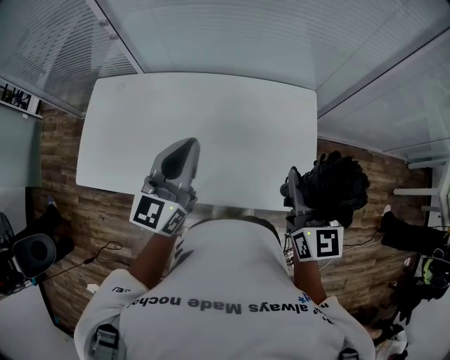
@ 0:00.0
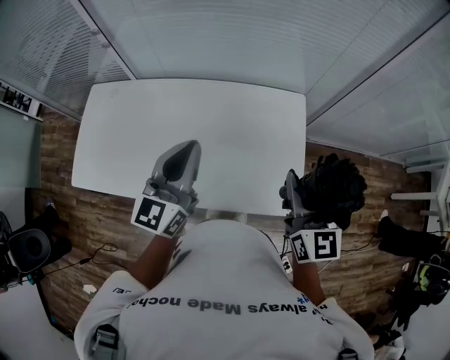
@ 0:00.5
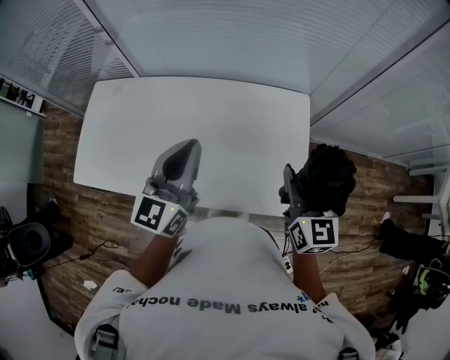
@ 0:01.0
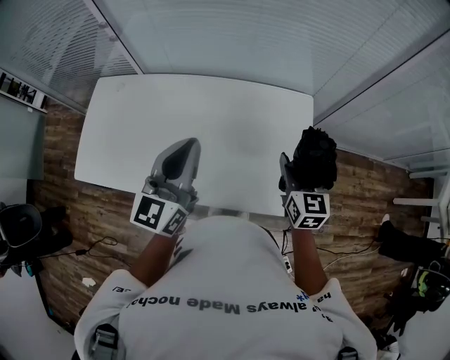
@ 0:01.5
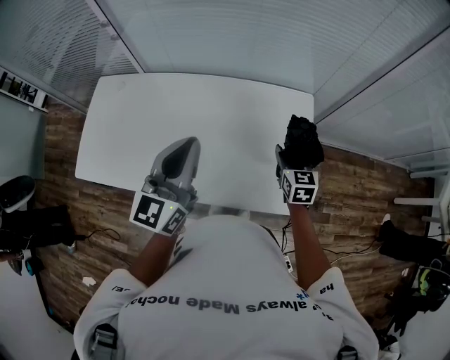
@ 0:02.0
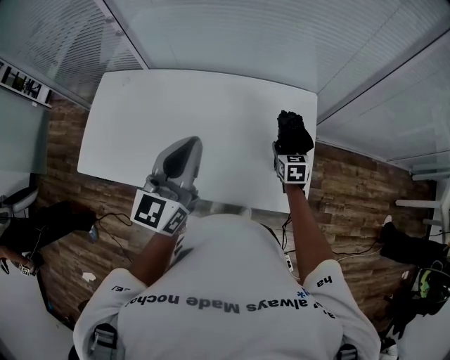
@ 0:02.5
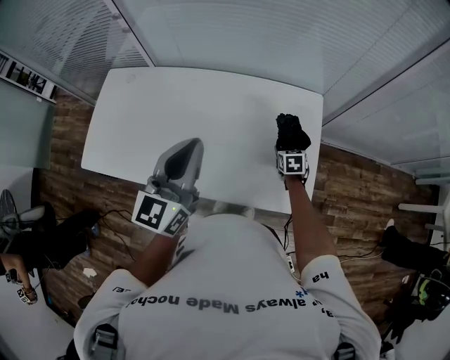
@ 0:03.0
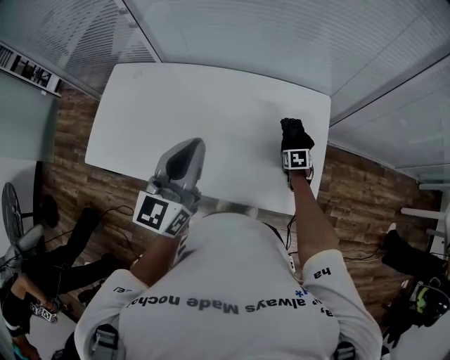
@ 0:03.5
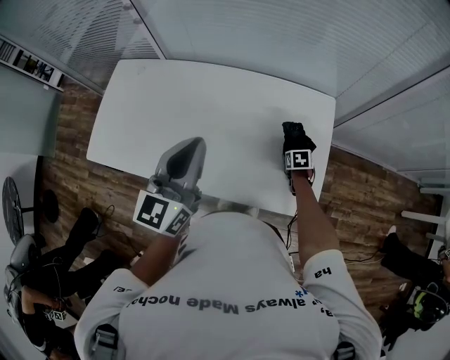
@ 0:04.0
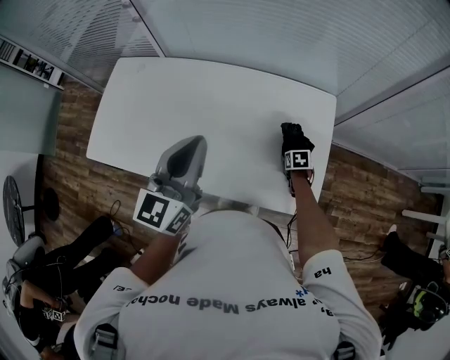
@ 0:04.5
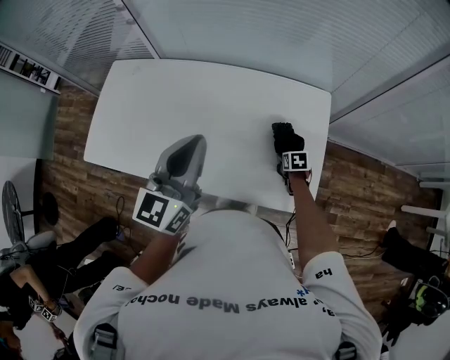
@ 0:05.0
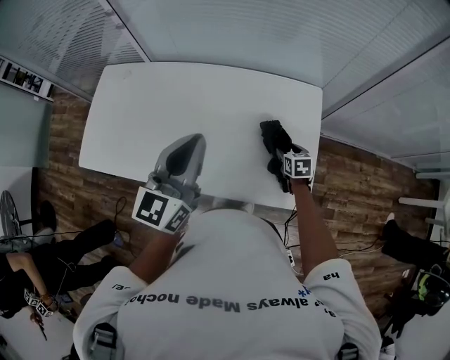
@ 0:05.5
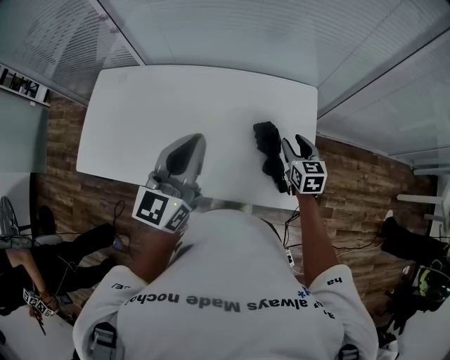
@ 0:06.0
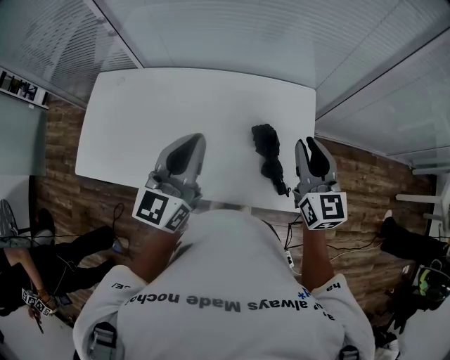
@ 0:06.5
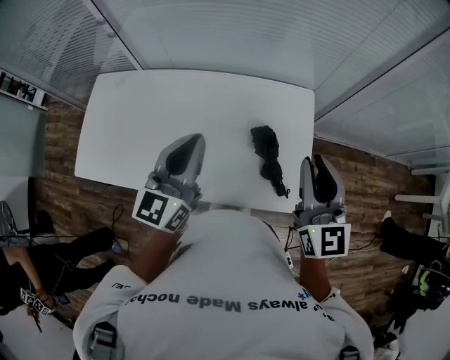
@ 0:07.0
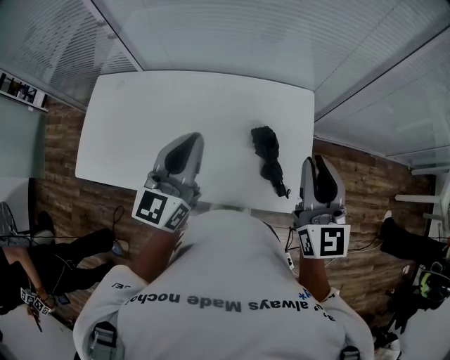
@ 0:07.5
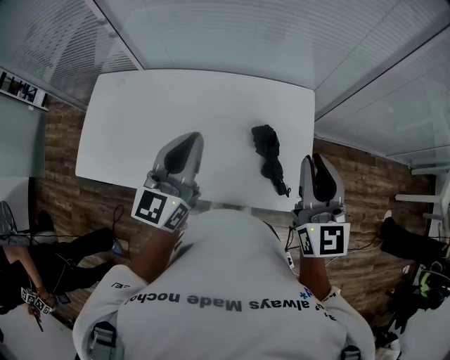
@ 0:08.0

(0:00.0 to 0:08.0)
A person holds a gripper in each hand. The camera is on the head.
0:00.0 - 0:02.0: The right gripper shifts about 20 cm downward and forward, and changes its angle by about 20 degrees, while the left gripper travels to the right by approximately 5 cm.
0:02.0 - 0:04.0: The right gripper is displaced downward by roughly 25 cm, and tilts its fingers about 40 degrees downward.
0:04.0 - 0:06.0: The right gripper travels upward by about 20 cm, and angles its fingers upward, by approximately 40 degrees.
0:06.0 - 0:08.0: The right gripper is displaced upward by roughly 25 cm, rotates approximately 30 degrees, and closes its fingers.

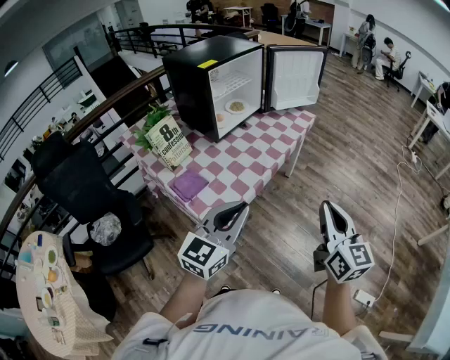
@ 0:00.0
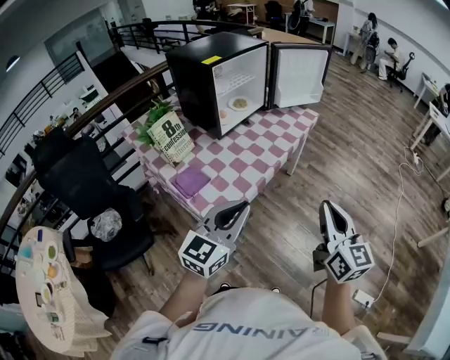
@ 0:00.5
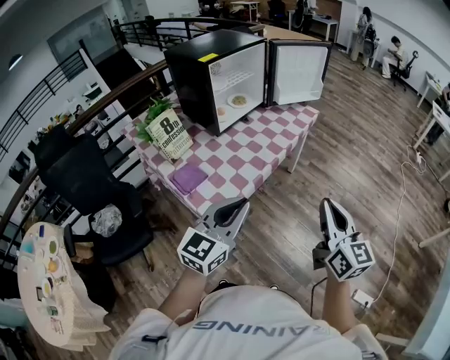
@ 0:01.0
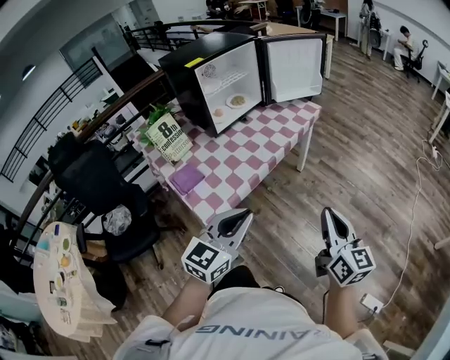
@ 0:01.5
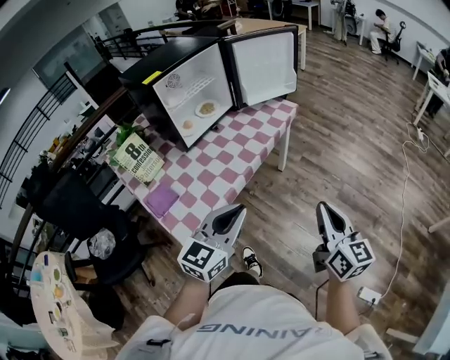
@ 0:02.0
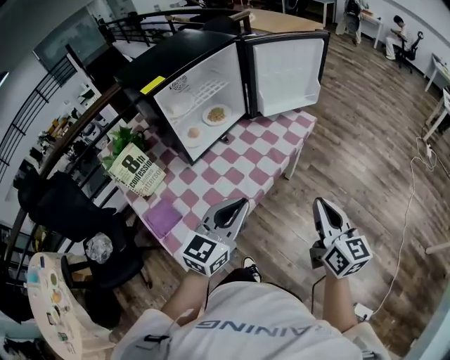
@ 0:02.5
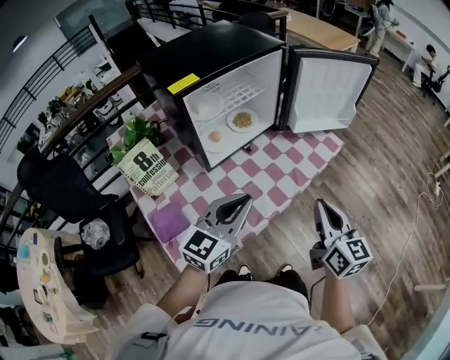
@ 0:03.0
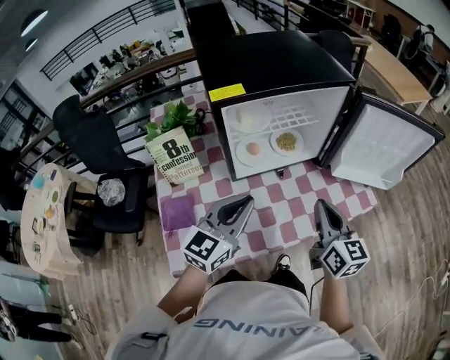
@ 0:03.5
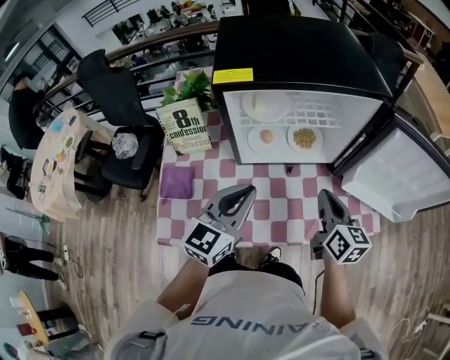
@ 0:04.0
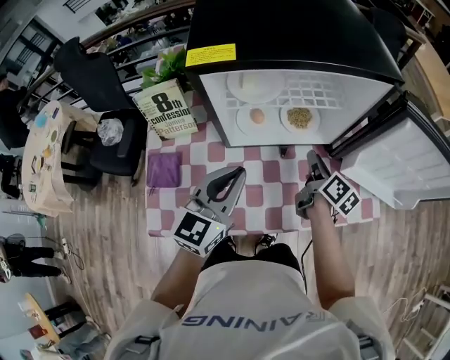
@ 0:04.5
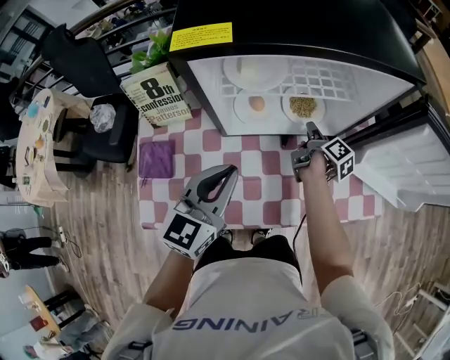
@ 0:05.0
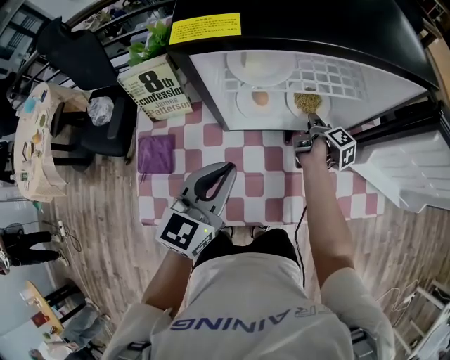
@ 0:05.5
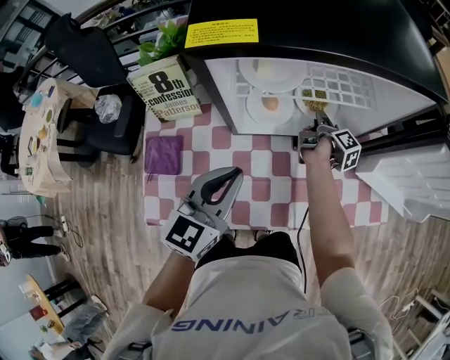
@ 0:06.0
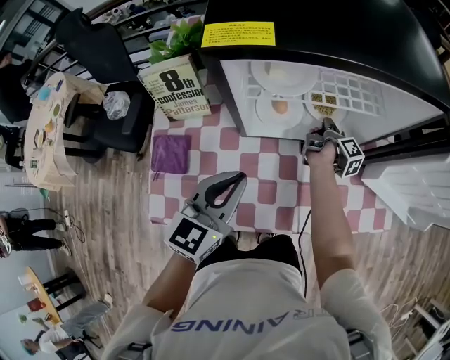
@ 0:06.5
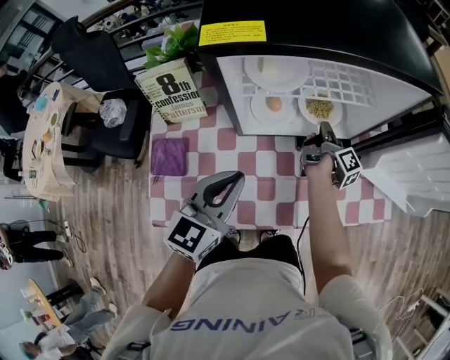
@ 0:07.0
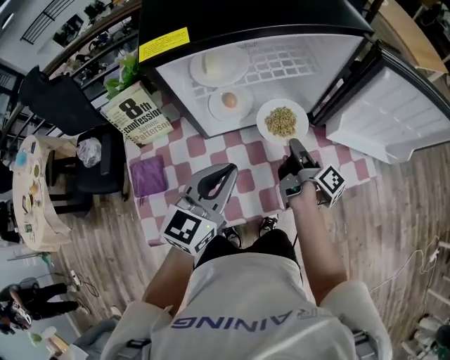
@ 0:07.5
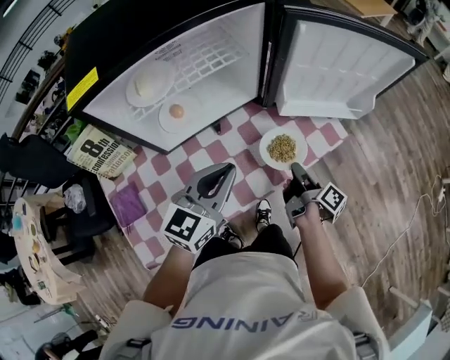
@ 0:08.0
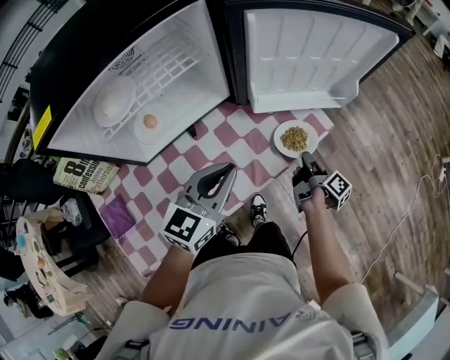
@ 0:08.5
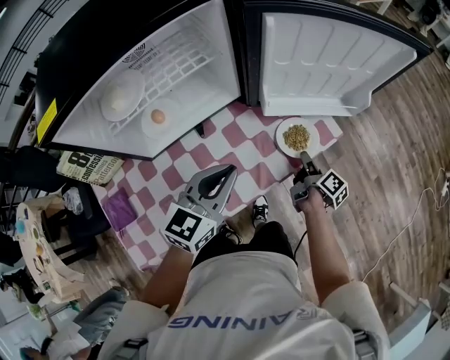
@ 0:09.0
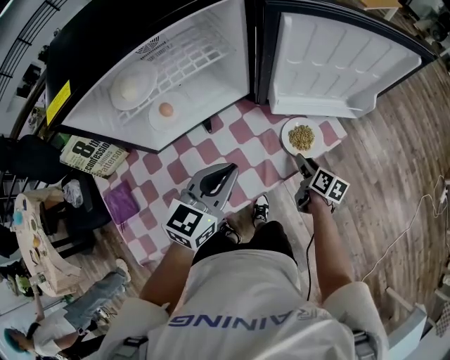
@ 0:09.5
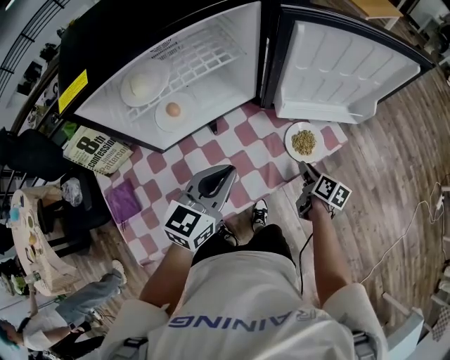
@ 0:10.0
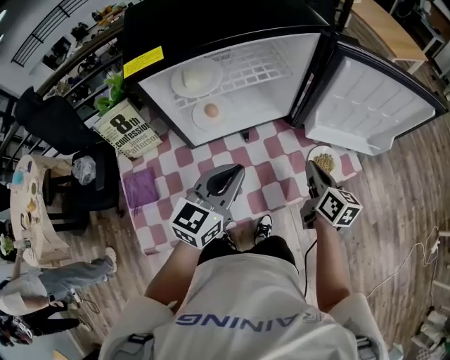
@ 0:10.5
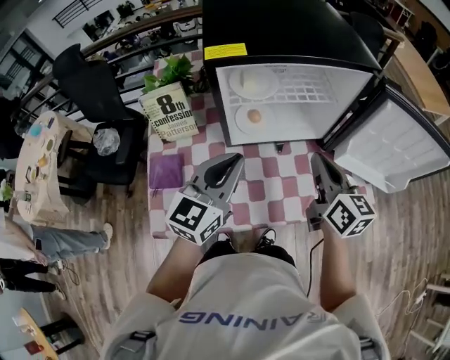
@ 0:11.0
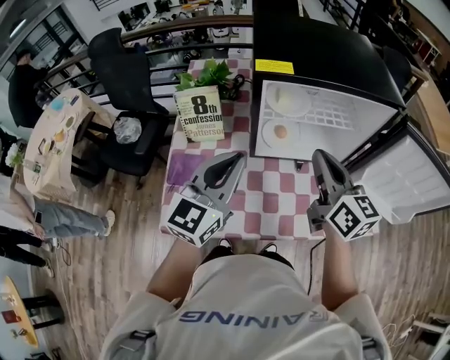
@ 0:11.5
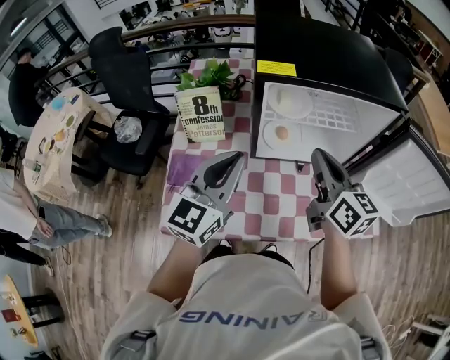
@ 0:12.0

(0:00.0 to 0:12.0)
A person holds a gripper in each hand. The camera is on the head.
0:00.0 - 0:02.0: The left gripper heads to the right and forward, covering about 15 cm. Meanwhile the right gripper goes about 15 cm to the right, forward and downward.
0:02.0 - 0:04.0: The left gripper ends up some 40 cm from where it was, and turns by about 50 degrees, while the right gripper shifts by some 60 cm, and rotates approximately 50 degrees.
0:04.0 - 0:06.0: The left gripper goes about 5 cm downward. Meanwhile the right gripper goes roughly 30 cm forward and downward, twists approximately 70 degrees clockwise, seen from behind, and opens up.
0:06.0 - 0:08.0: The right gripper goes approximately 35 cm backward and to the right, and closes up. Meanwhile the left gripper shifts about 15 cm to the right, and changes its angle by approximately 30 degrees.
0:08.0 - 0:10.0: The right gripper heads downward and to the right, covering roughly 10 cm, changes its angle by approximately 40 degrees, and opens up.
0:10.0 - 0:12.0: The left gripper shifts by about 25 cm, and swivels some 40 degrees, while the right gripper moves upward, about 35 cm, tilts its fingers some 30 degrees upward, and closes its fingers.

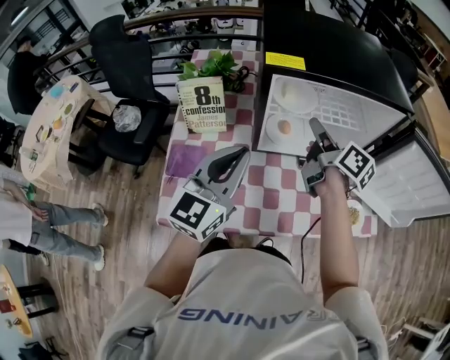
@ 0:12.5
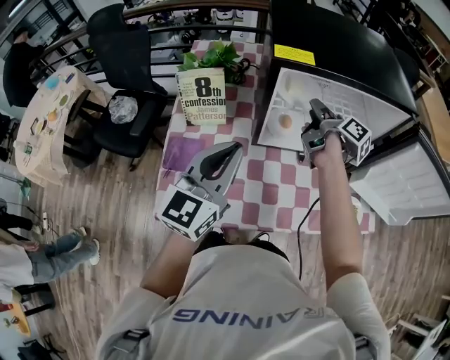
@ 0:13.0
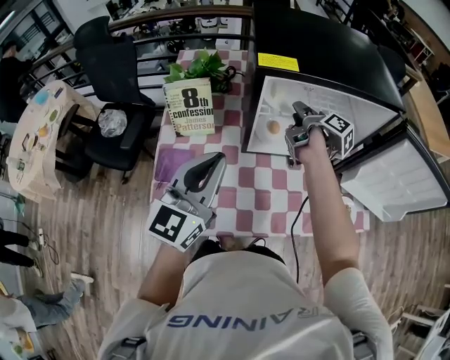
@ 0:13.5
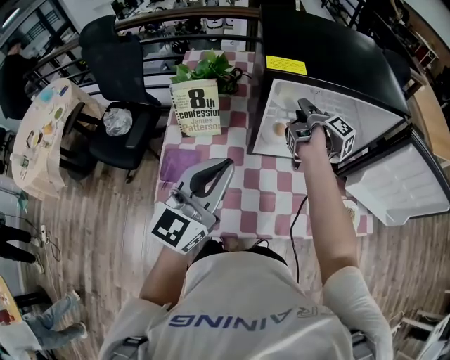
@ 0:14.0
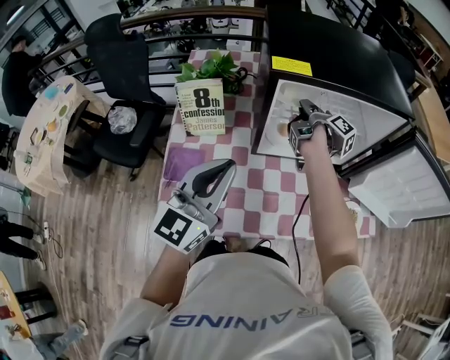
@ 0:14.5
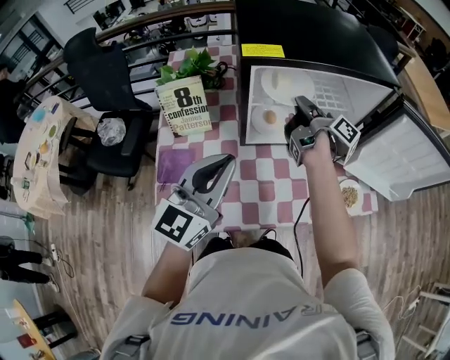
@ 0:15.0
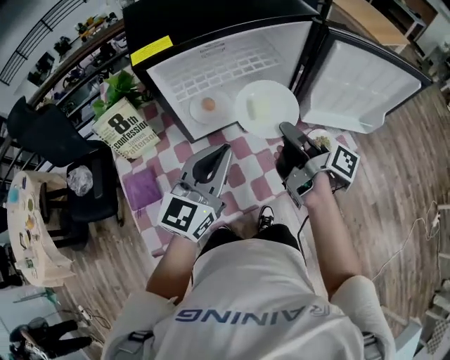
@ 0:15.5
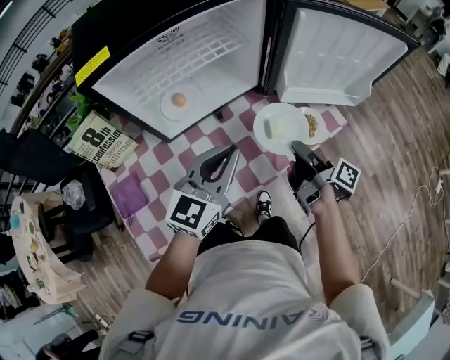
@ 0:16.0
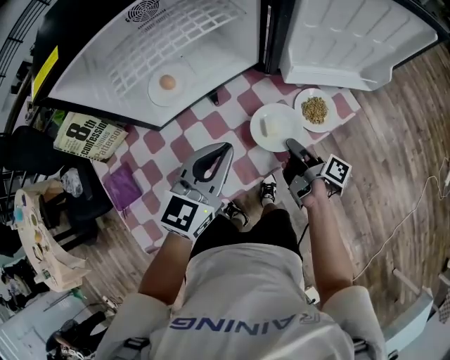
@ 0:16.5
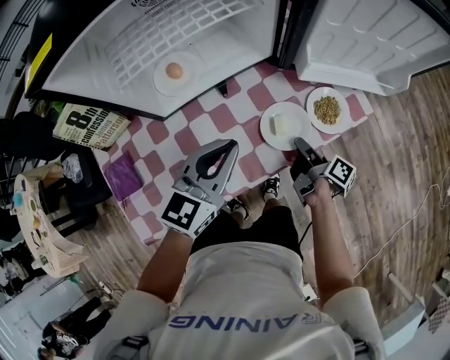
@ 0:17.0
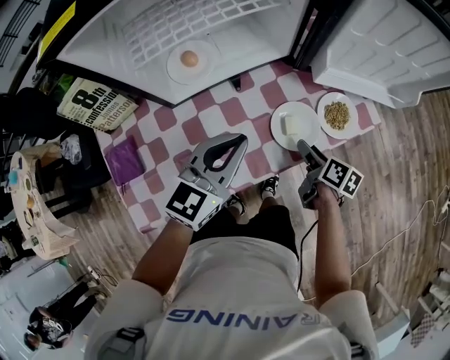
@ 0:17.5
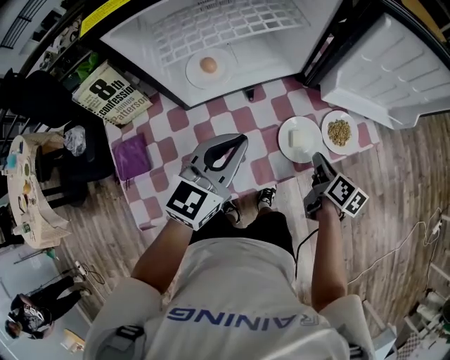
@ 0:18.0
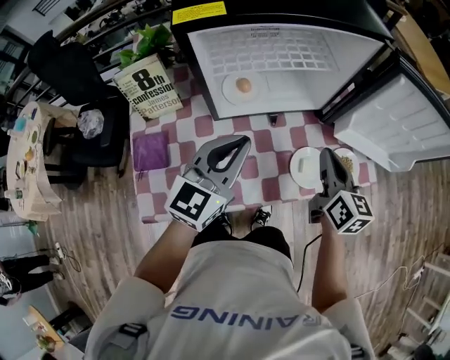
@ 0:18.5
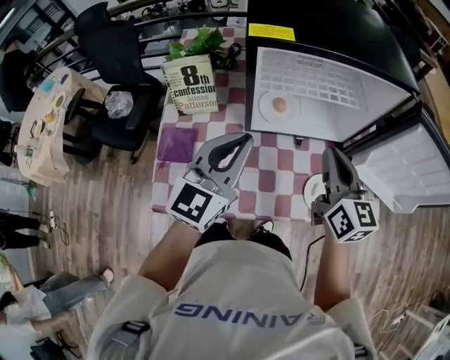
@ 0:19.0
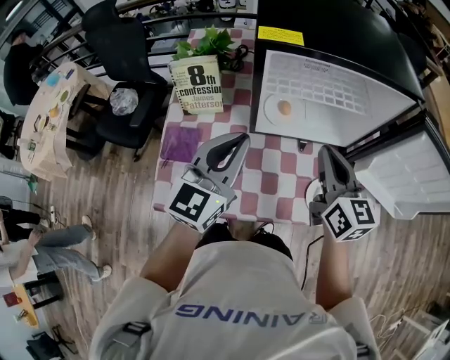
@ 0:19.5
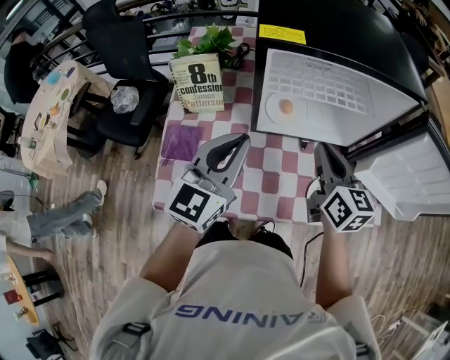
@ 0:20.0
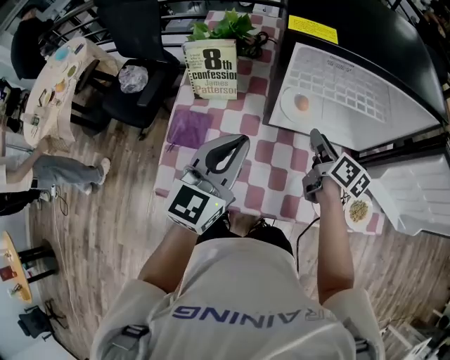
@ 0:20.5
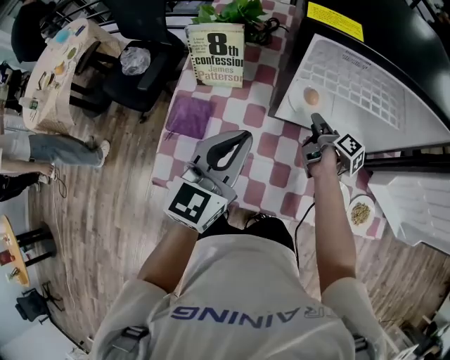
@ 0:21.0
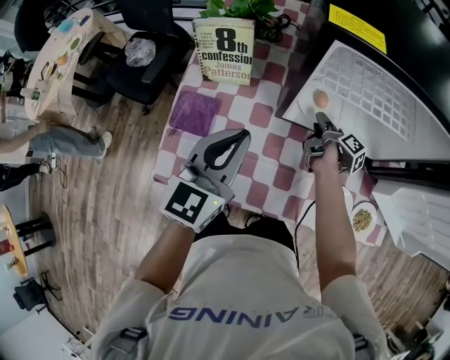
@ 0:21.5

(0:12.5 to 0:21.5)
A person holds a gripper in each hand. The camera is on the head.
0:12.5 - 0:14.5: The right gripper moves forward and downward, some 10 cm, and rotates roughly 30 degrees.
0:14.5 - 0:17.0: The left gripper moves to the right and downward, approximately 30 cm, and swivels approximately 40 degrees. The right gripper shifts some 50 cm to the right, downward and backward.
0:17.0 - 0:19.5: The left gripper moves some 25 cm, and swivels some 40 degrees. Meanwhile the right gripper moves upward, approximately 30 cm, twists about 80 degrees counterclockwise, seen from behind, and opens and closes again.
0:19.5 - 0:21.5: The right gripper is displaced downward and forward by roughly 30 cm, rotates around the line of its fingers by roughly 70 degrees, clockwise from behind, and opens its fingers. Meanwhile the left gripper travels downward by about 5 cm.
